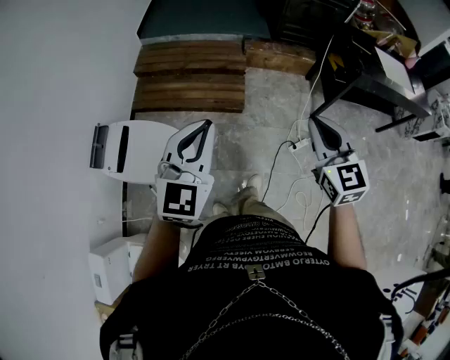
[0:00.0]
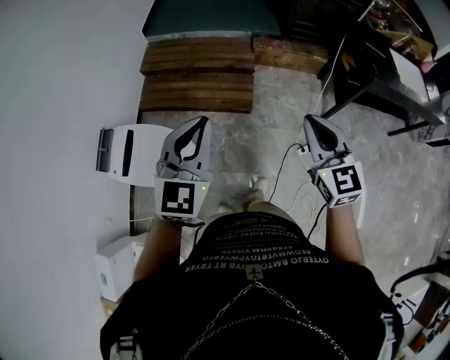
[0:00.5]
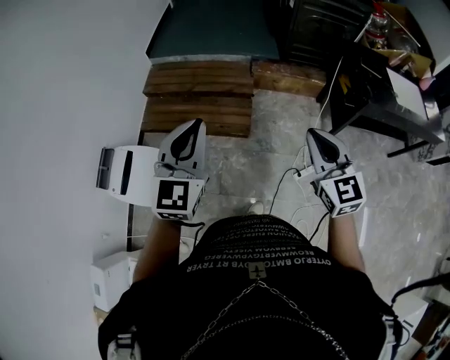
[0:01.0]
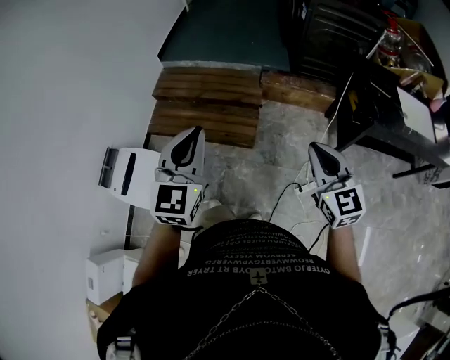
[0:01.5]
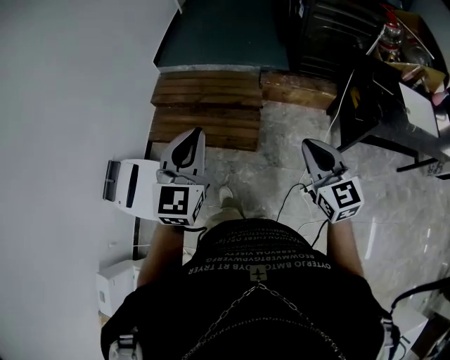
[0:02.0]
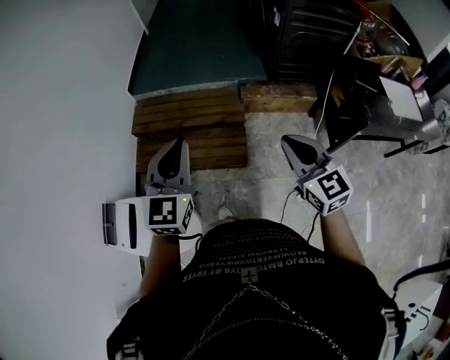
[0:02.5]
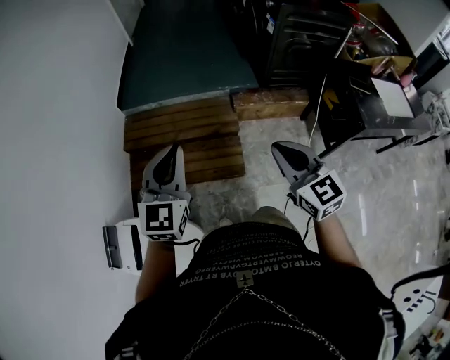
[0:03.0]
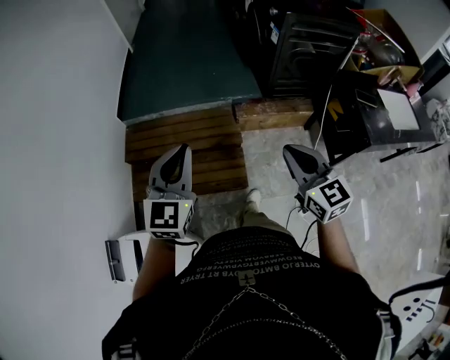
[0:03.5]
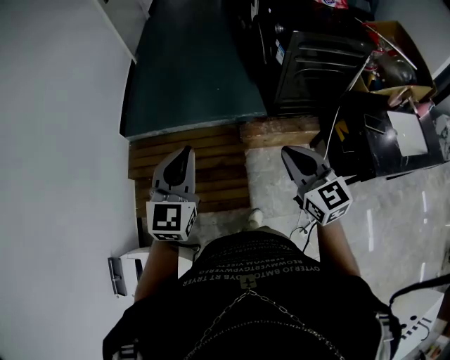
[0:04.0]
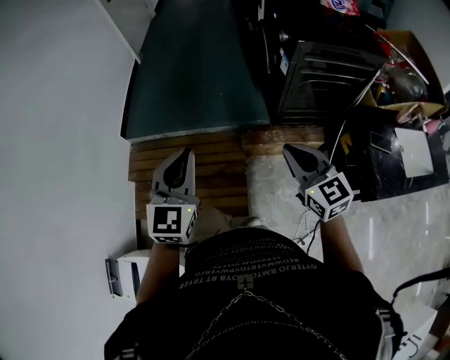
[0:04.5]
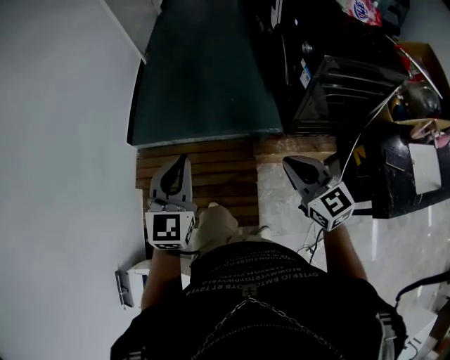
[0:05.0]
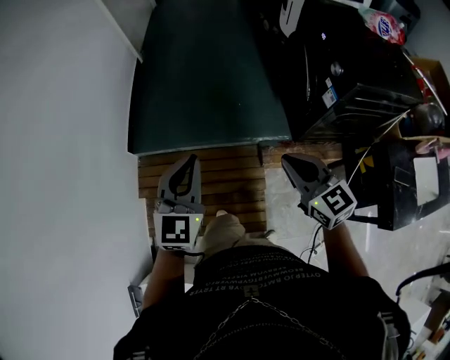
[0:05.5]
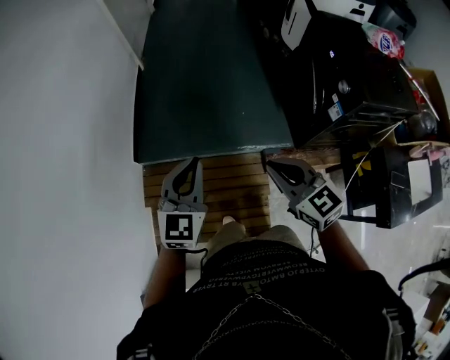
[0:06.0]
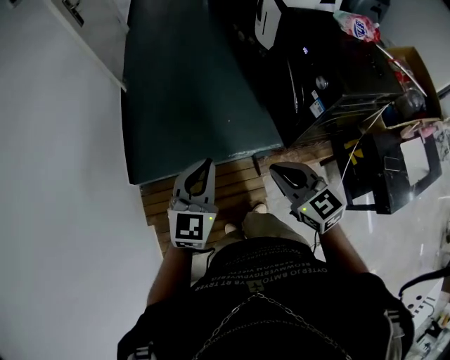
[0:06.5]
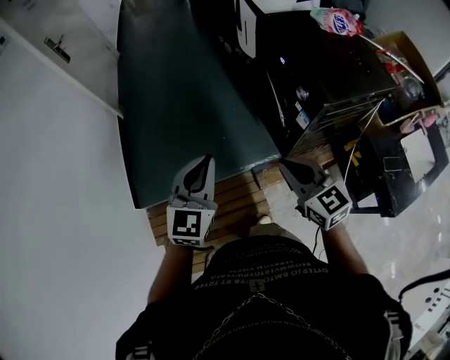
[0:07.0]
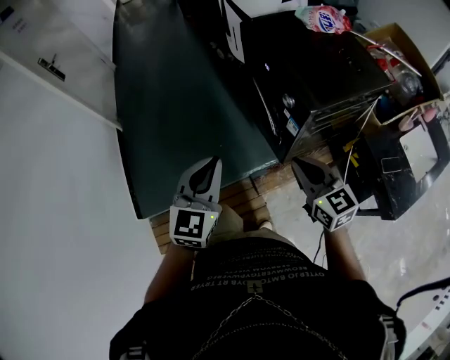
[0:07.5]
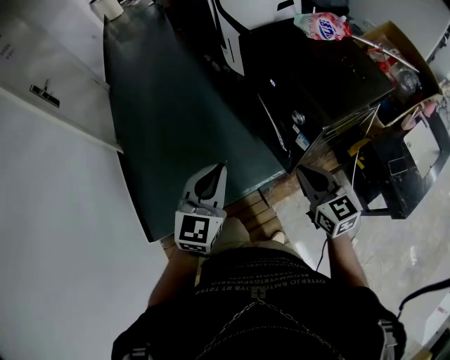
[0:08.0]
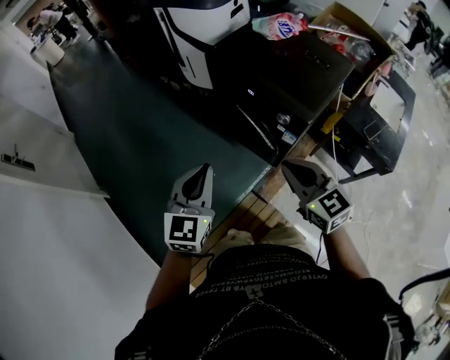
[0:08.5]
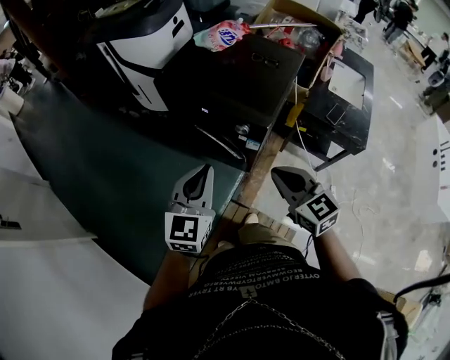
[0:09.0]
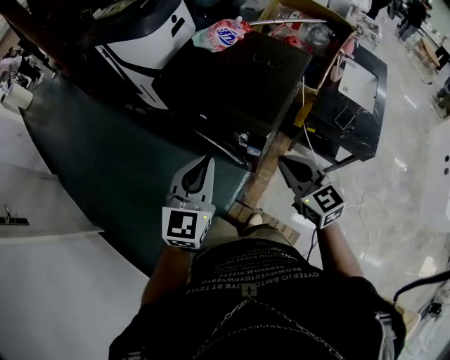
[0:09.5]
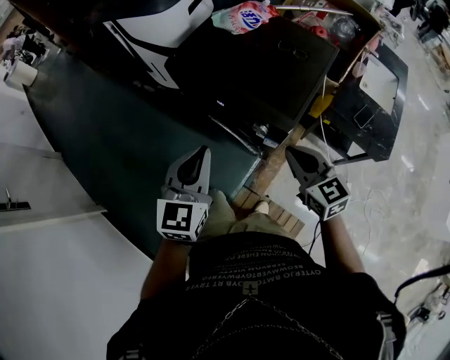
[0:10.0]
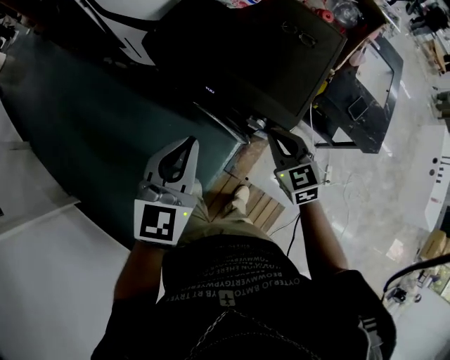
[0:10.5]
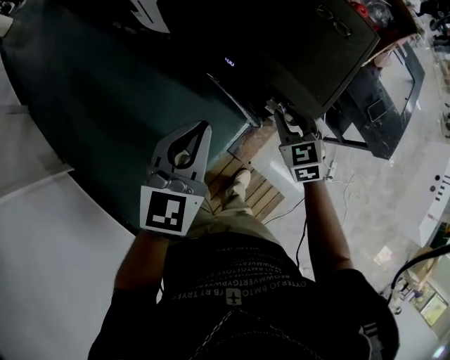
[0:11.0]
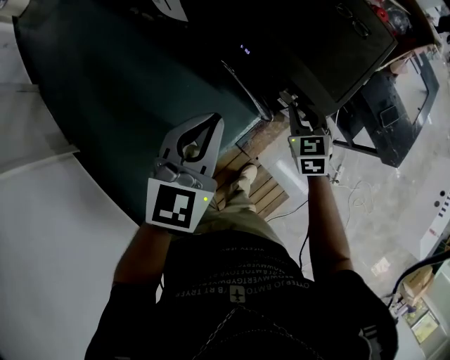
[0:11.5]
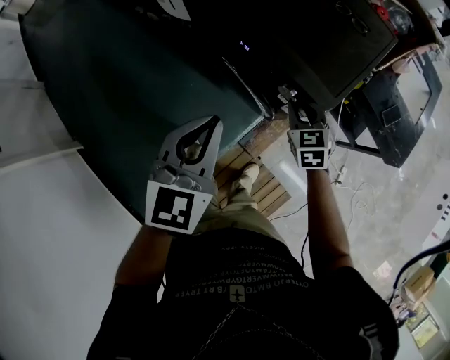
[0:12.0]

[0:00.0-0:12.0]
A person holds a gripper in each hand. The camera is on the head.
0:00.0 to 0:02.0: The grippers both shift forward and to the right by about 25 cm.
0:02.0 to 0:04.0: The grippers both shift forward by approximately 40 cm.
0:04.0 to 0:06.0: The two grippers travel together, forward and to the left, roughly 50 cm.
0:06.0 to 0:08.0: The left gripper changes place by approximately 35 cm, and swivels about 30 degrees. The right gripper moves roughly 35 cm, and changes its angle by about 40 degrees.
0:08.0 to 0:10.0: The right gripper moves roughly 15 cm, and changes its angle by some 20 degrees; the left gripper changes place by some 20 cm, and changes its angle by some 20 degrees.
0:10.0 to 0:12.0: The left gripper heads downward, covering about 10 cm. Meanwhile the right gripper travels downward and forward by approximately 25 cm, and swivels some 30 degrees.

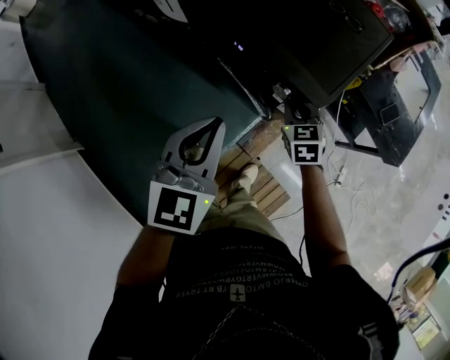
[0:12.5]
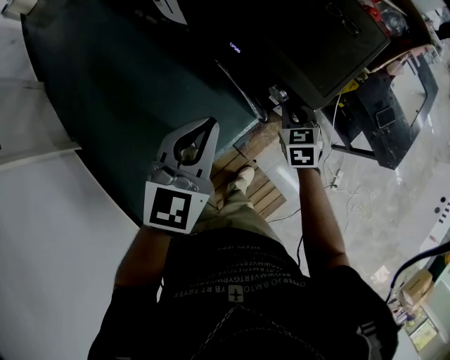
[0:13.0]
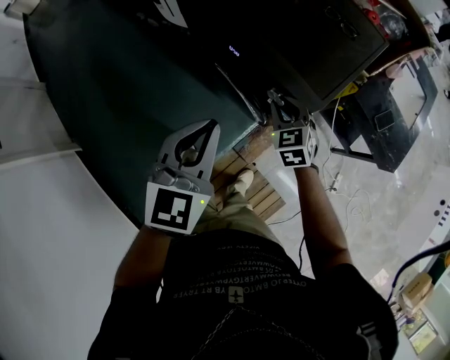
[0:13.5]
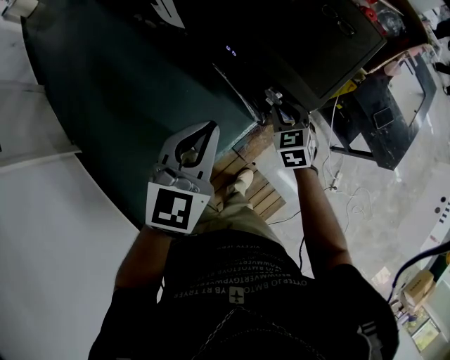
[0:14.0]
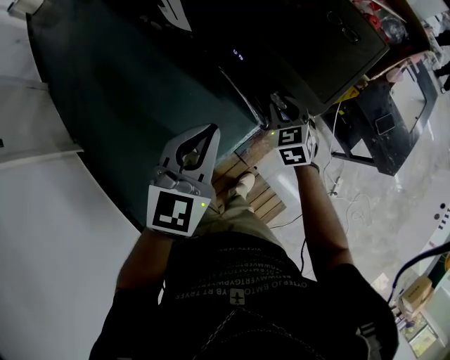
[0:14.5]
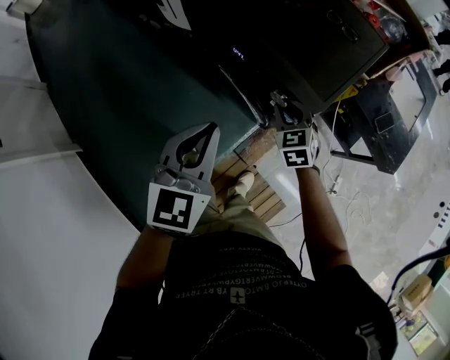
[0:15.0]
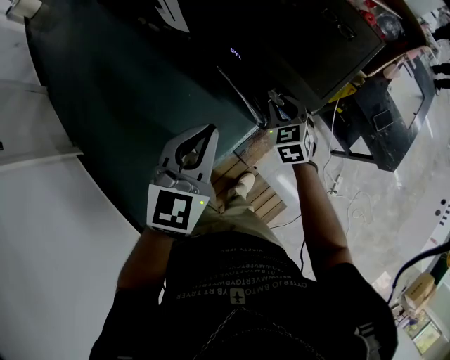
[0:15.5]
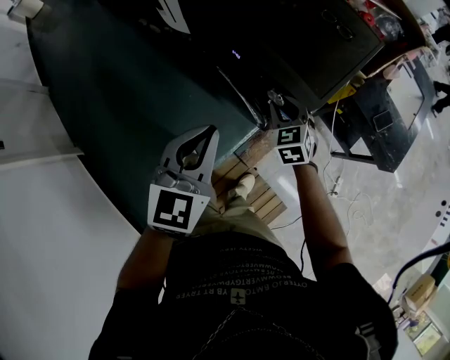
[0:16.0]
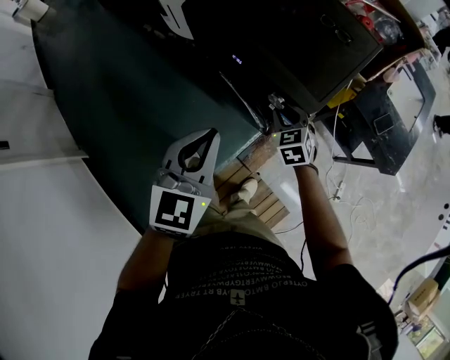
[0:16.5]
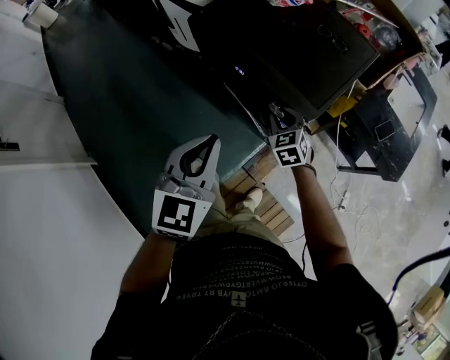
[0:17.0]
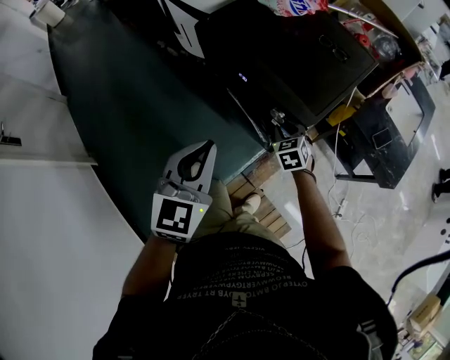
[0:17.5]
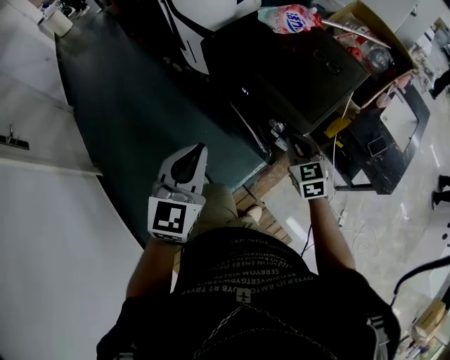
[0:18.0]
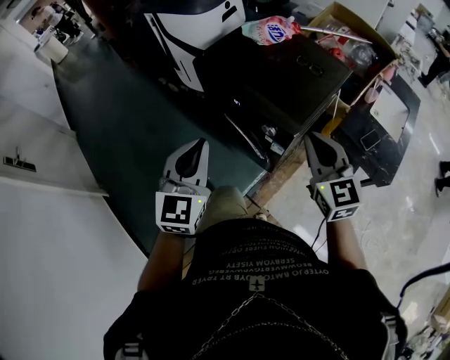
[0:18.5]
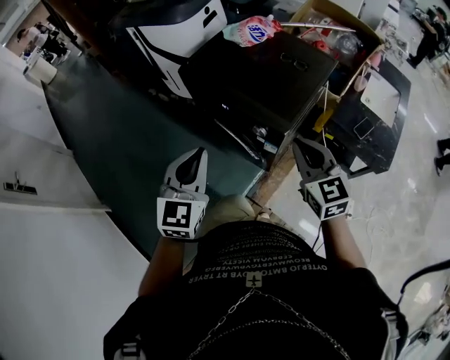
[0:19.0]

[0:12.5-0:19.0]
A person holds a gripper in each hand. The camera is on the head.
0:12.5 to 0:17.0: The grippers make only small movements.
0:17.0 to 0:19.0: The right gripper travels upward and backward by approximately 30 cm, turns by approximately 30 degrees, and closes its fingers. Meanwhile the left gripper shifts roughly 10 cm upward.

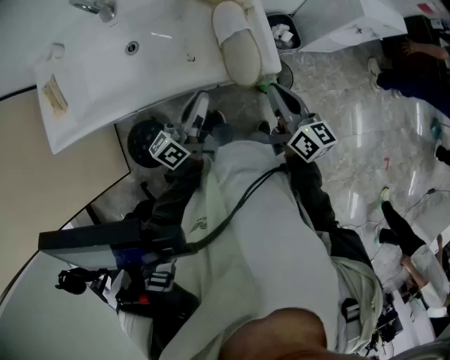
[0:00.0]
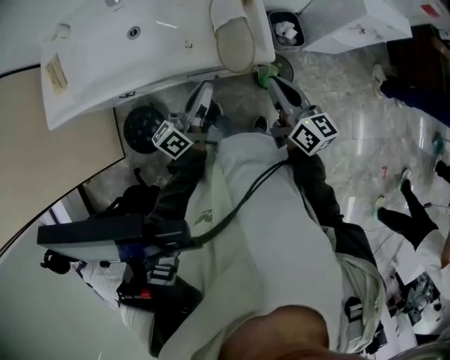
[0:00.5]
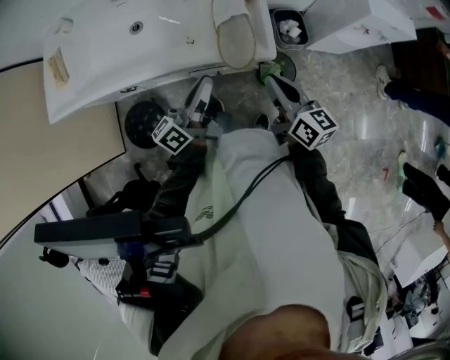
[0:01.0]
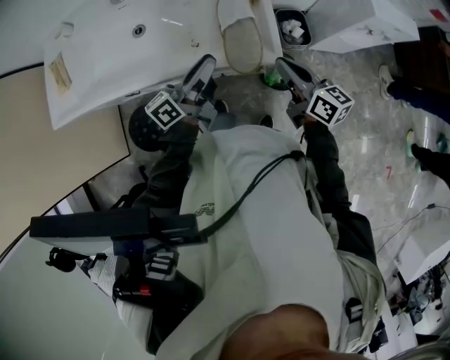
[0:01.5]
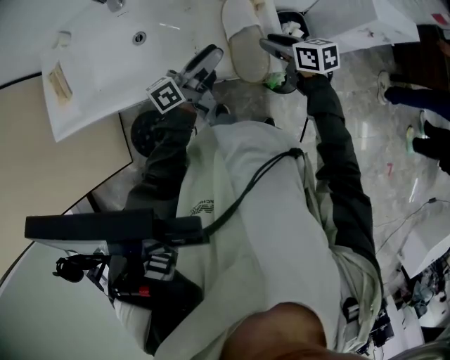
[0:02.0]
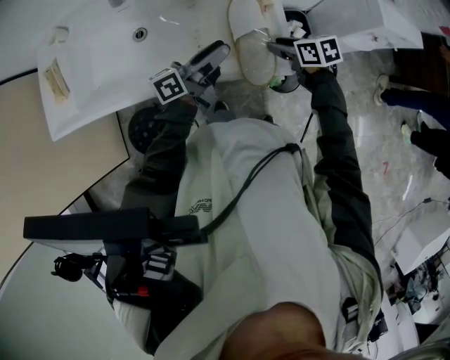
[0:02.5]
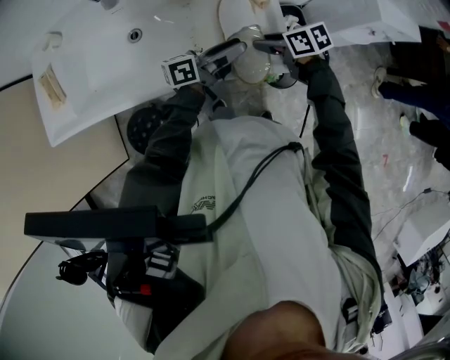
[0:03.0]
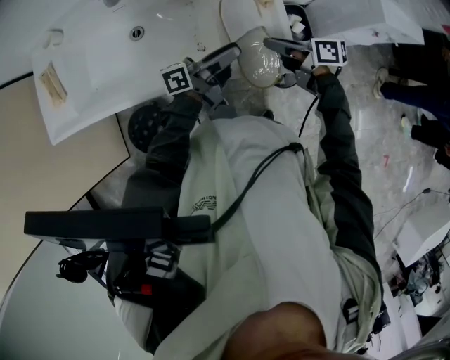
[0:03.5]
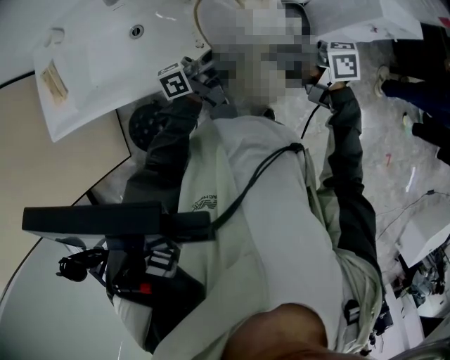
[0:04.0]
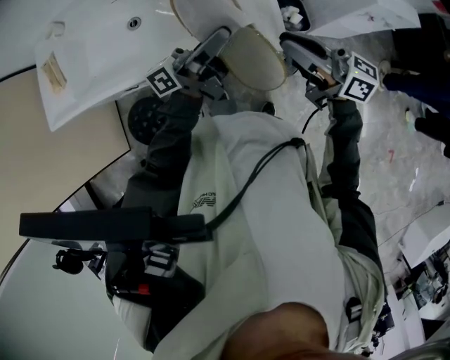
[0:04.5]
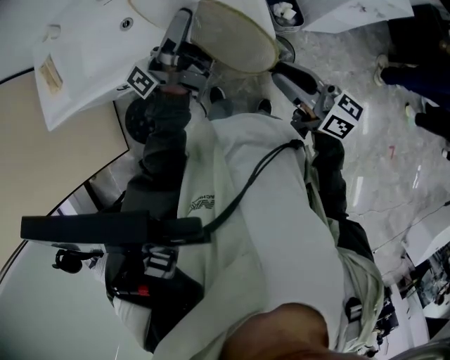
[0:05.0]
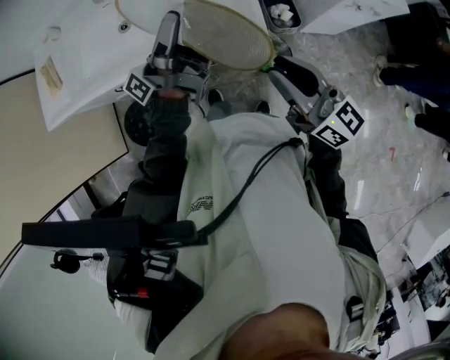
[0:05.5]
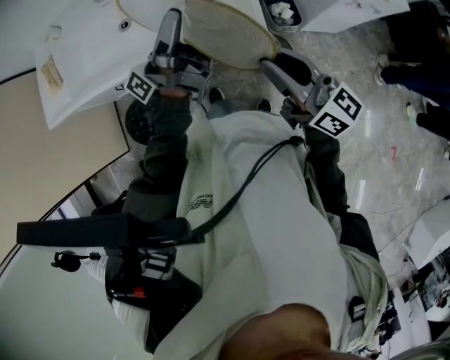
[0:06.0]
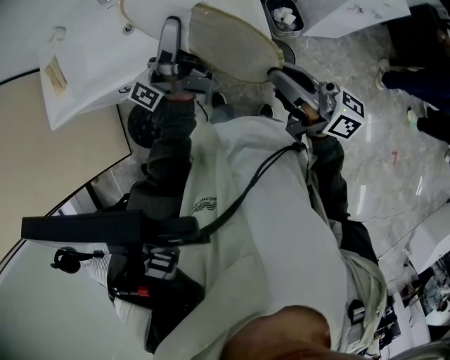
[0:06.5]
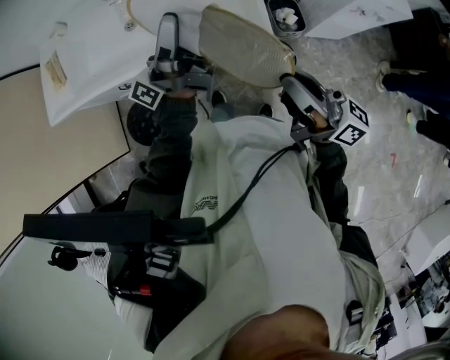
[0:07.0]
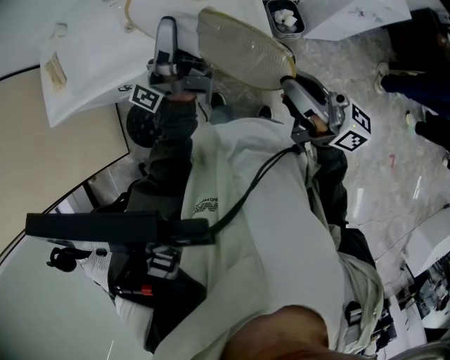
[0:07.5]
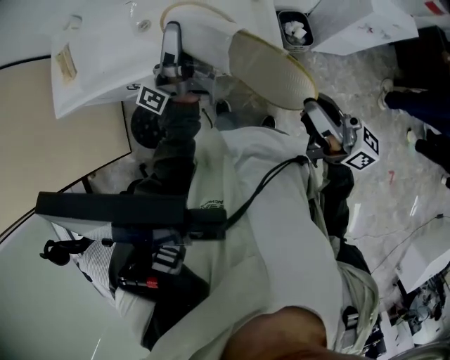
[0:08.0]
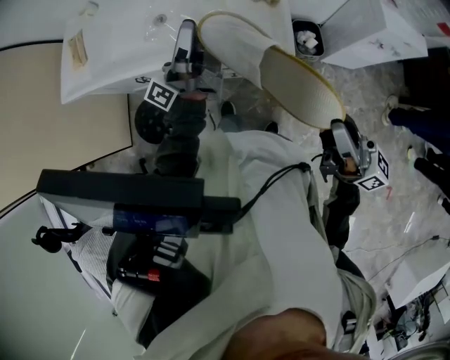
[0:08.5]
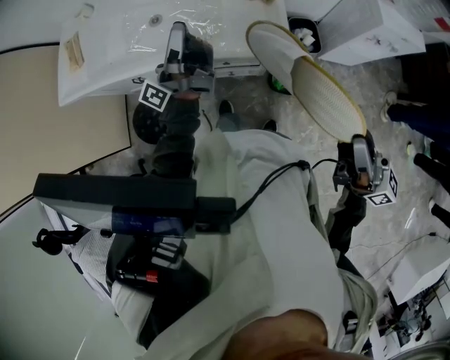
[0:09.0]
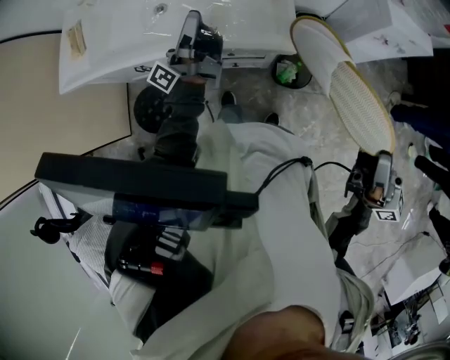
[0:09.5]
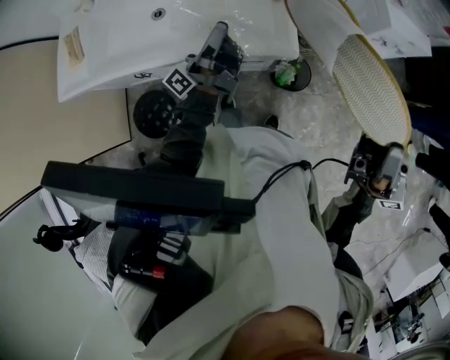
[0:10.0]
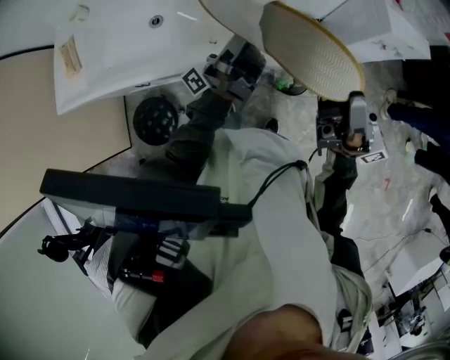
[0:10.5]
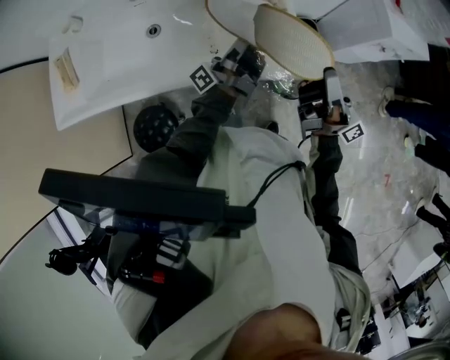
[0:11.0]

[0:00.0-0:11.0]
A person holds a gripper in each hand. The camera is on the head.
0:00.0 to 0:02.0: The right gripper changes place by some 15 cm, rotates roughly 40 degrees, and opens up.
0:02.0 to 0:03.5: The right gripper changes its angle by about 30 degrees, and closes its fingers.
0:03.5 to 0:05.5: The right gripper shifts by roughly 25 cm, and rotates about 50 degrees.
0:05.5 to 0:07.5: The right gripper ends up roughly 5 cm from where it was, and turns by approximately 20 degrees.
0:07.5 to 0:09.0: The right gripper moves roughly 10 cm.
0:09.0 to 0:11.0: The right gripper moves approximately 25 cm, and swivels approximately 30 degrees.
